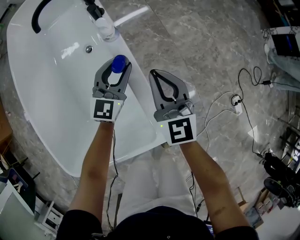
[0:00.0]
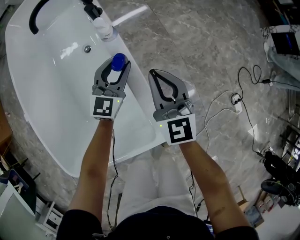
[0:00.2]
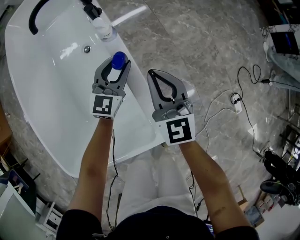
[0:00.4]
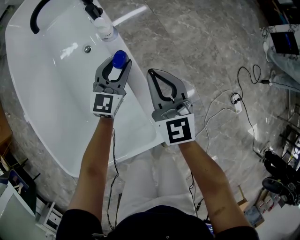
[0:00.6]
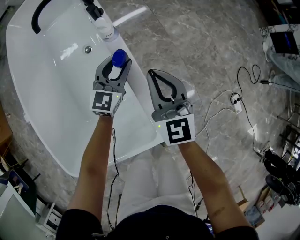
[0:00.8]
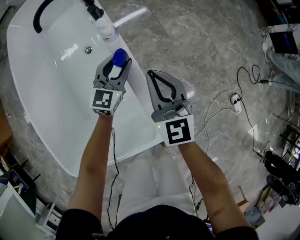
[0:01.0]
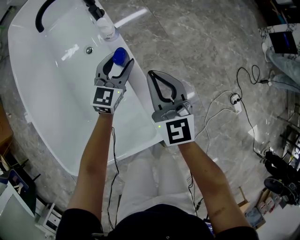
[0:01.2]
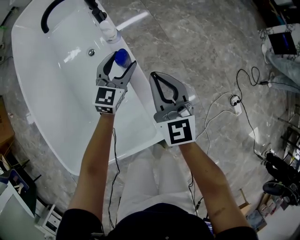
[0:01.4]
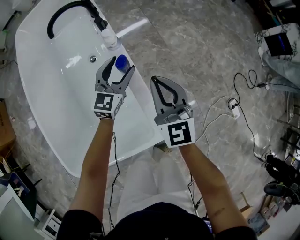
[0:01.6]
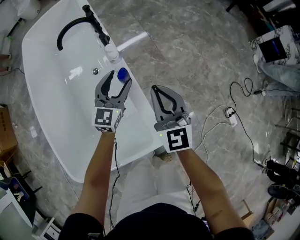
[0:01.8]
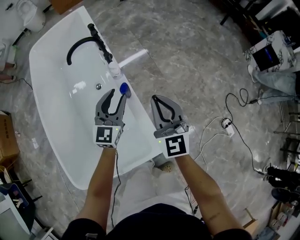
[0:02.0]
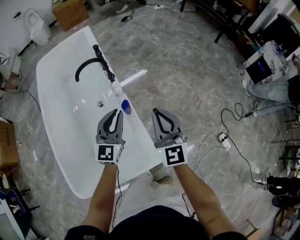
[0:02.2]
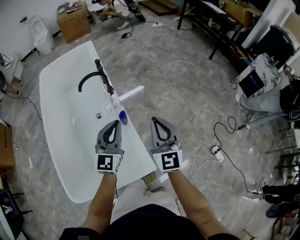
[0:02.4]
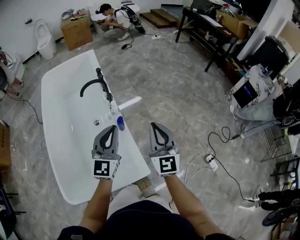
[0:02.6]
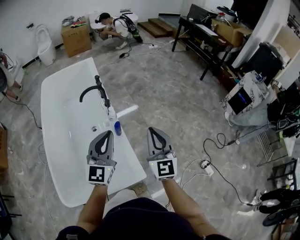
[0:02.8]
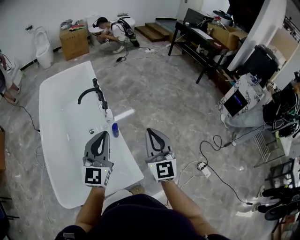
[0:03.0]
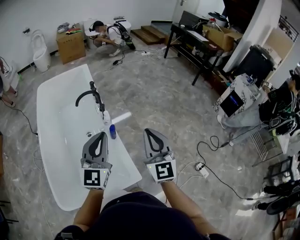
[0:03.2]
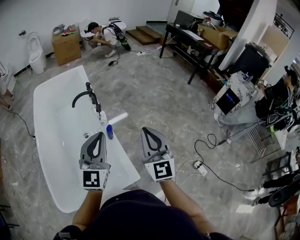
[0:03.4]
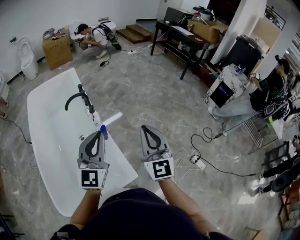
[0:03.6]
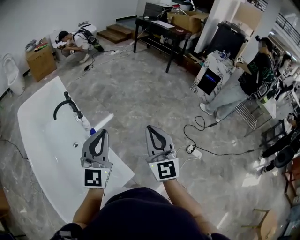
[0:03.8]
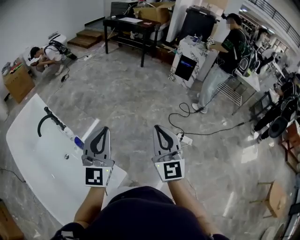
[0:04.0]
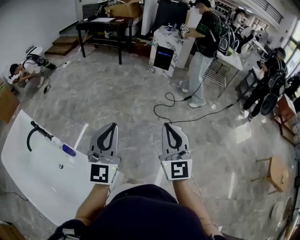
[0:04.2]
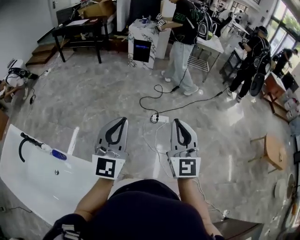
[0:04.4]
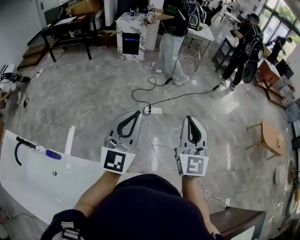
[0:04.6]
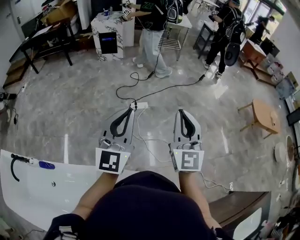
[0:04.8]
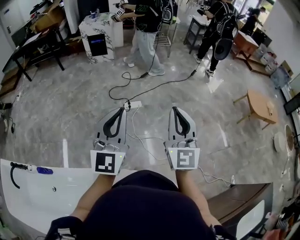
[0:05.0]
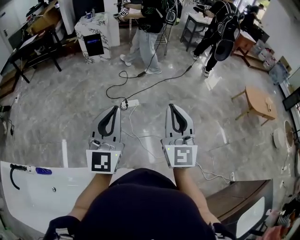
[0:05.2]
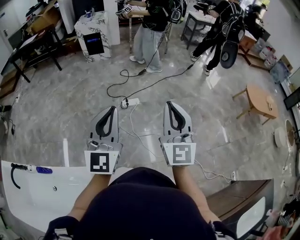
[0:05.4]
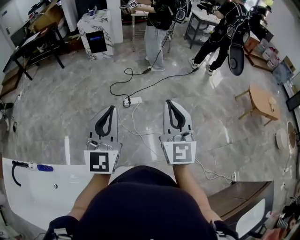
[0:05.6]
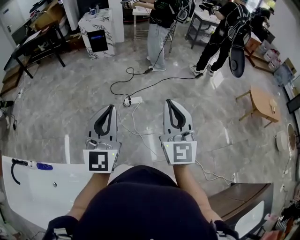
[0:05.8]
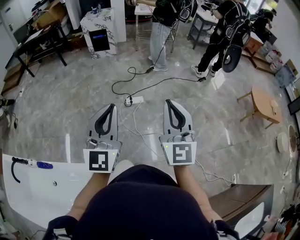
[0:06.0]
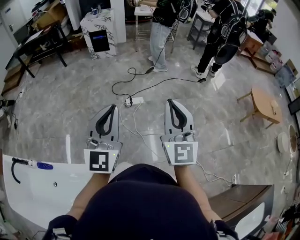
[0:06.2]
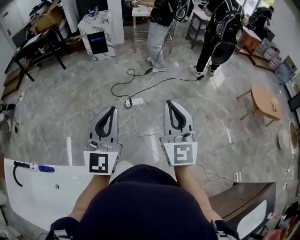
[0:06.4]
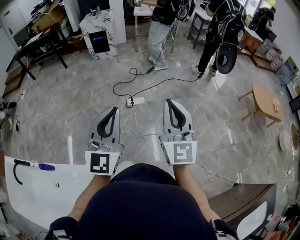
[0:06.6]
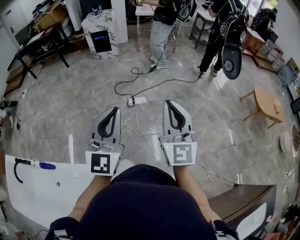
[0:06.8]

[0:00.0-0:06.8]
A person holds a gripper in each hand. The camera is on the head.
0:00.0 to 0:01.4: The left gripper opens.
0:01.4 to 0:02.8: The right gripper heads upward, covering about 30 cm. The left gripper travels upward and backward by some 40 cm, rotates roughly 30 degrees, and closes.
0:02.8 to 0:04.0: The left gripper shifts by roughly 20 cm, and changes its angle by approximately 30 degrees. The right gripper moves approximately 25 cm, and swivels roughly 30 degrees.
0:04.0 to 0:05.4: The pair of grippers is taken some 40 cm. The left gripper turns by roughly 40 degrees, while the right gripper swivels roughly 50 degrees.
0:05.4 to 0:06.8: The grippers make only small movements.

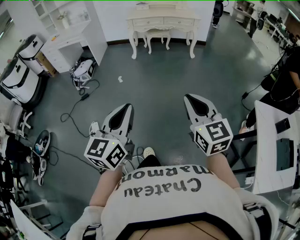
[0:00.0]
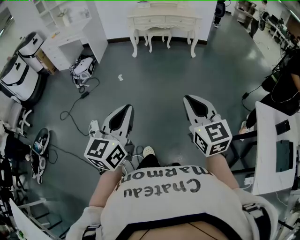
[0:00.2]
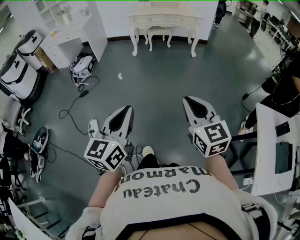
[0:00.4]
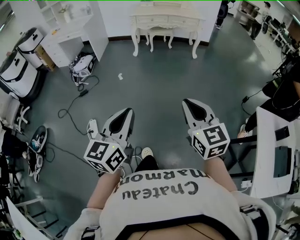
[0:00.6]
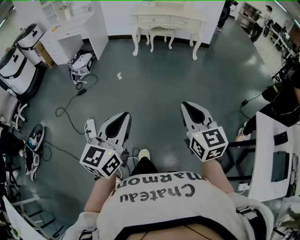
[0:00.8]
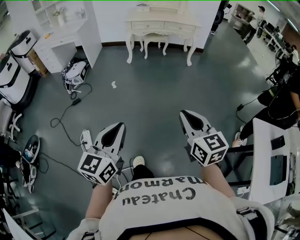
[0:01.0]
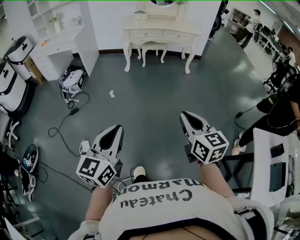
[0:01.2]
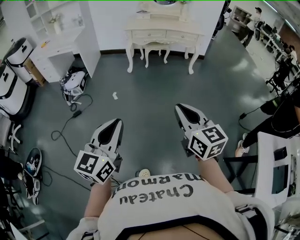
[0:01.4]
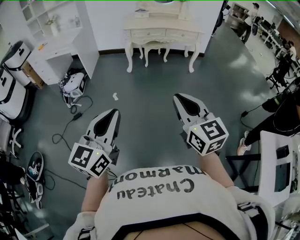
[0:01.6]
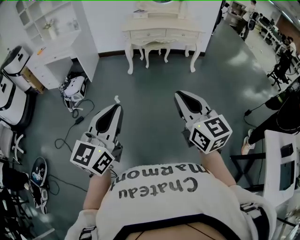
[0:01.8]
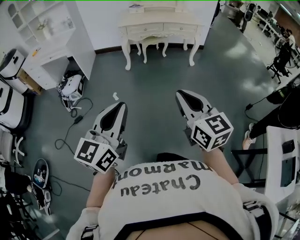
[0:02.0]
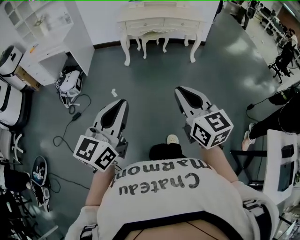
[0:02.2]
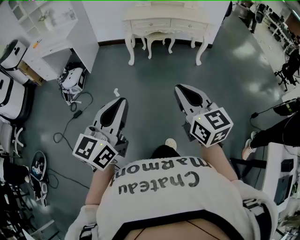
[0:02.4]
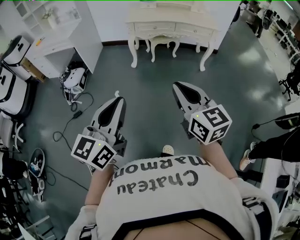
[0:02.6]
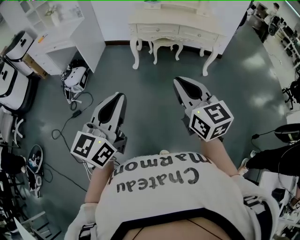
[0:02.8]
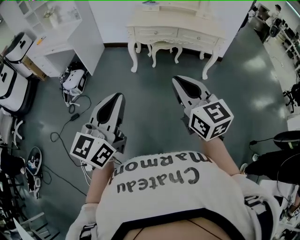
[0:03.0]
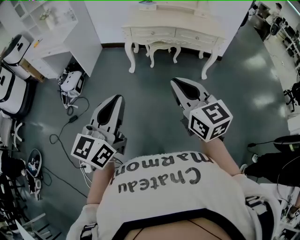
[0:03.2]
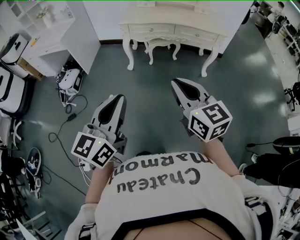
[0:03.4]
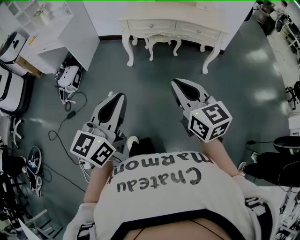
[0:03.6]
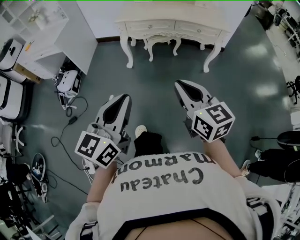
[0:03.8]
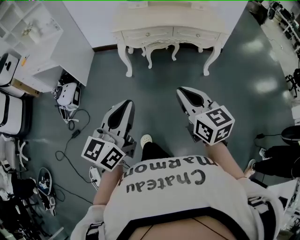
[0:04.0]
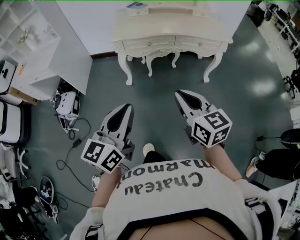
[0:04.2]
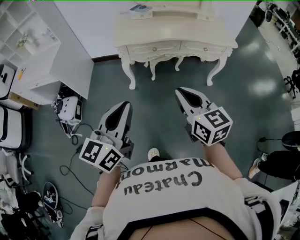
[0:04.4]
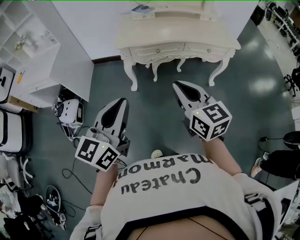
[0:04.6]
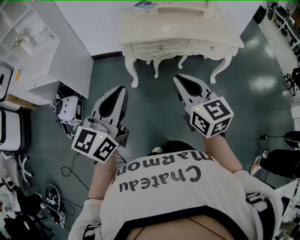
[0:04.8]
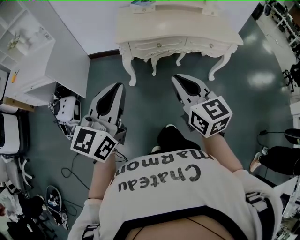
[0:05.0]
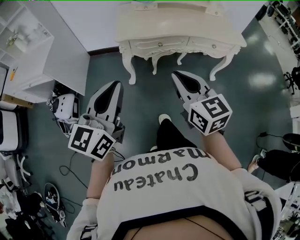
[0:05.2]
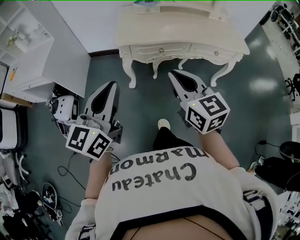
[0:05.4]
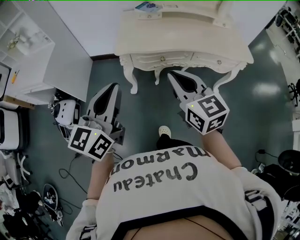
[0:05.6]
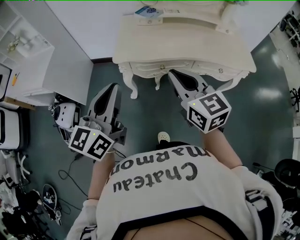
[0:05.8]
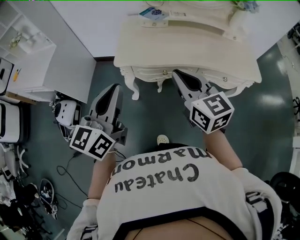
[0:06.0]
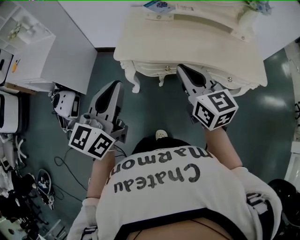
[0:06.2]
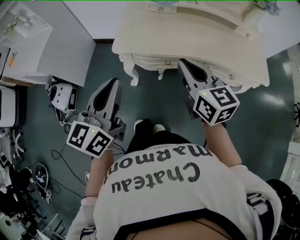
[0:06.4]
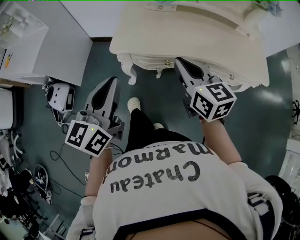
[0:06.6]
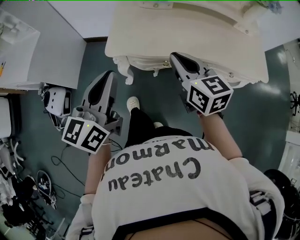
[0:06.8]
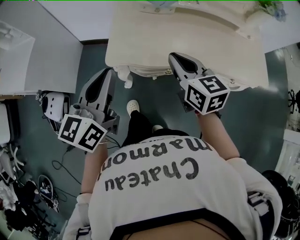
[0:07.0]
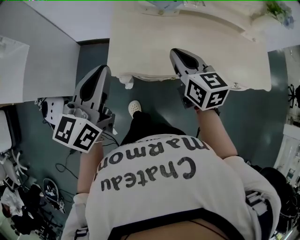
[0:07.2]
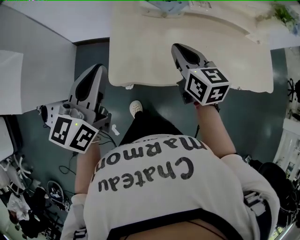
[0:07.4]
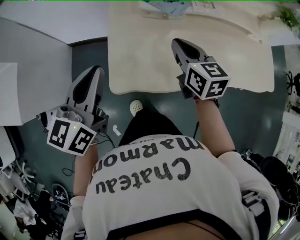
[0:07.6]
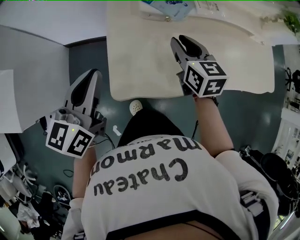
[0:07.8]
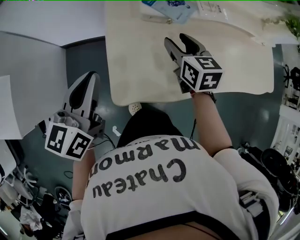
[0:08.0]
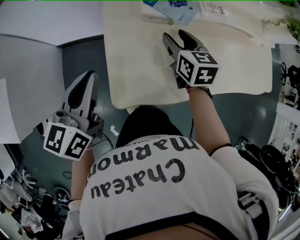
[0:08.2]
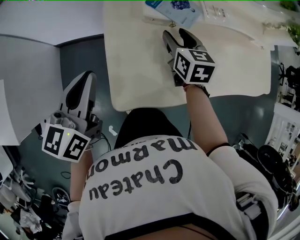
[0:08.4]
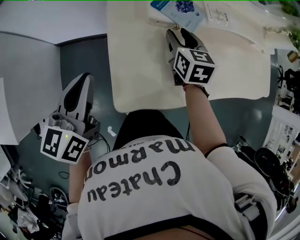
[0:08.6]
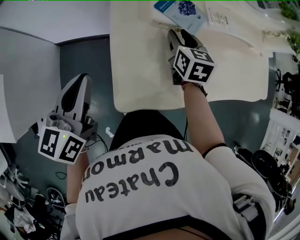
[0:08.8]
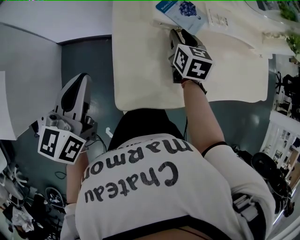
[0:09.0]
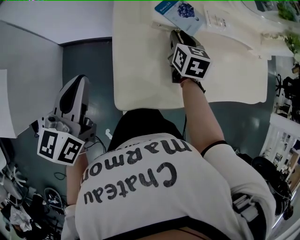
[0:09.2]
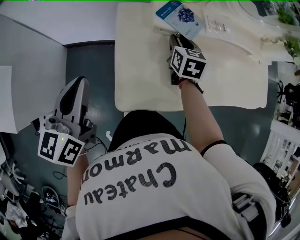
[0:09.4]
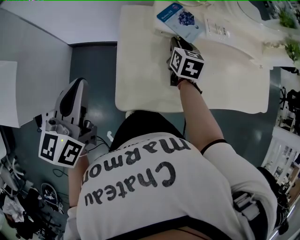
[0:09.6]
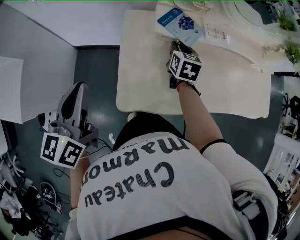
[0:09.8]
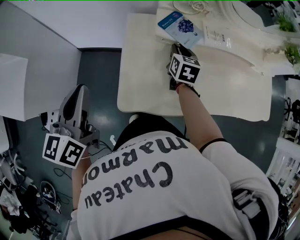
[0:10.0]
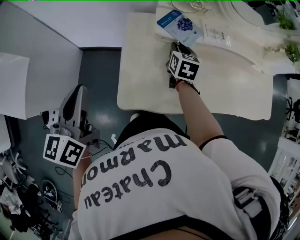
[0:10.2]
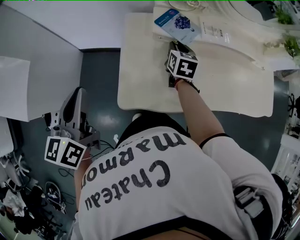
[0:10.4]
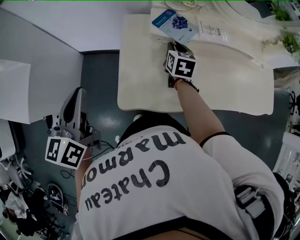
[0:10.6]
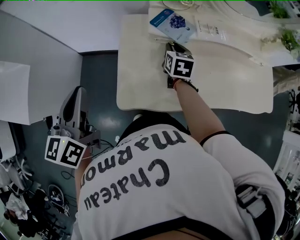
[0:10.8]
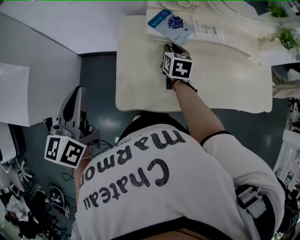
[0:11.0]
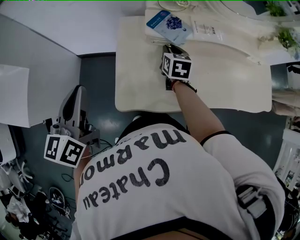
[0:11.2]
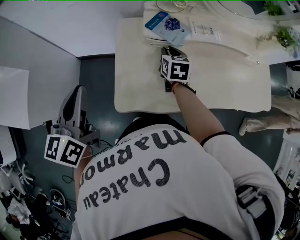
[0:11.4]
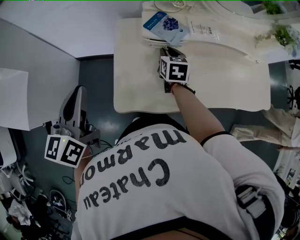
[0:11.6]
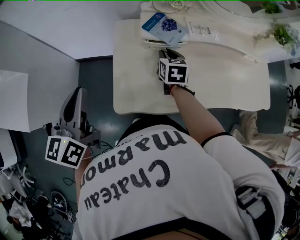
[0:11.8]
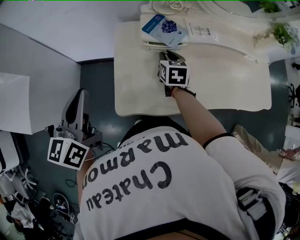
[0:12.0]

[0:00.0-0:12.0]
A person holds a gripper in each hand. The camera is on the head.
0:00.0 to 0:01.6: The two grippers go roughly 30 cm forward and to the left.
0:01.6 to 0:03.0: The grippers both shift forward by about 35 cm.
0:03.0 to 0:04.4: Both grippers travel together forward, some 35 cm.
0:04.4 to 0:06.0: Both grippers travel together forward, roughly 35 cm.
0:06.0 to 0:07.6: The right gripper travels forward and downward by approximately 35 cm, and changes its angle by about 20 degrees. Meanwhile the left gripper travels forward by roughly 35 cm.
0:07.6 to 0:09.0: The left gripper heads to the left, covering roughly 10 cm. Meanwhile the right gripper heads forward and downward, covering roughly 15 cm, turns by roughly 20 degrees, and opens up.
0:09.0 to 0:10.4: The left gripper goes about 10 cm upward and backward.
0:10.4 to 0:12.0: There are only small adjustments of the grippers.

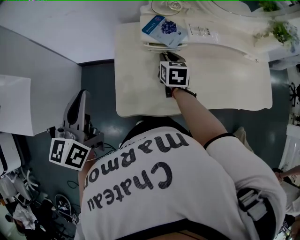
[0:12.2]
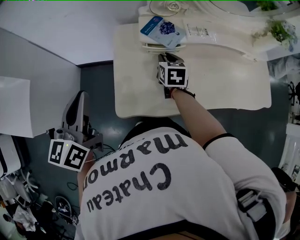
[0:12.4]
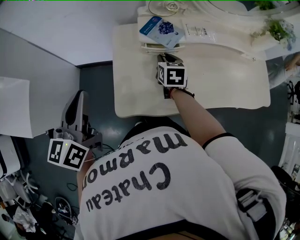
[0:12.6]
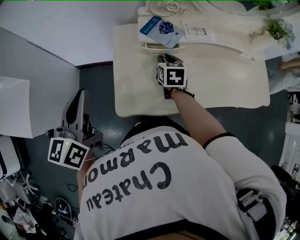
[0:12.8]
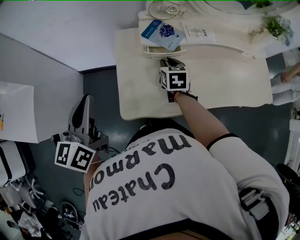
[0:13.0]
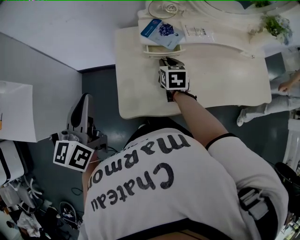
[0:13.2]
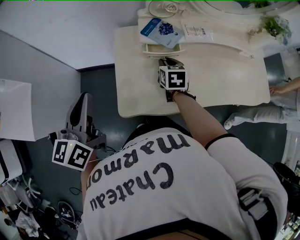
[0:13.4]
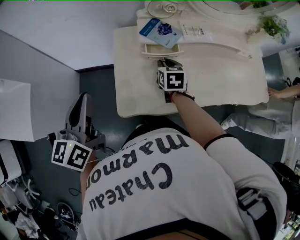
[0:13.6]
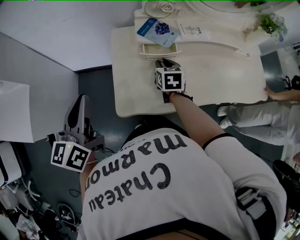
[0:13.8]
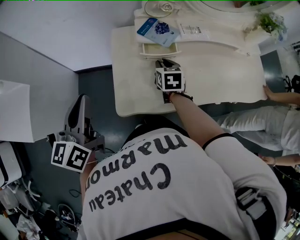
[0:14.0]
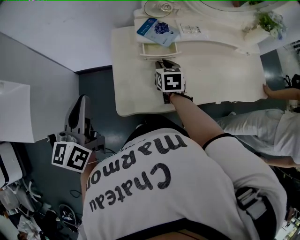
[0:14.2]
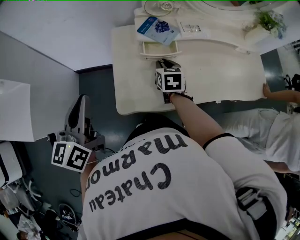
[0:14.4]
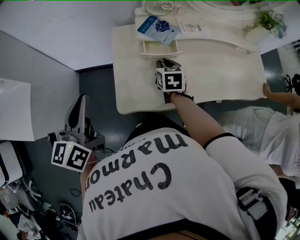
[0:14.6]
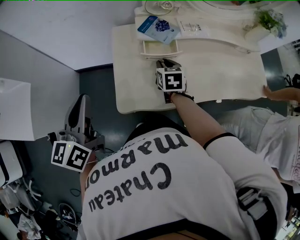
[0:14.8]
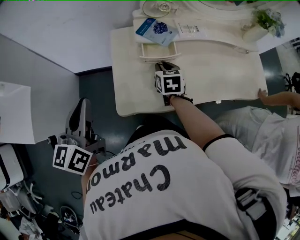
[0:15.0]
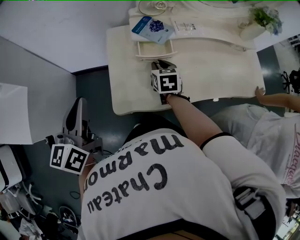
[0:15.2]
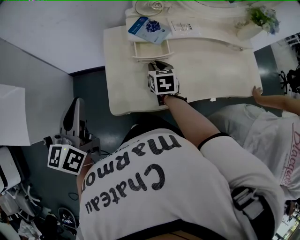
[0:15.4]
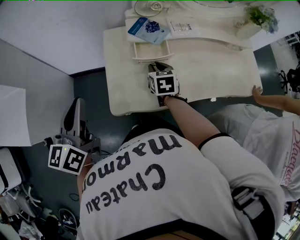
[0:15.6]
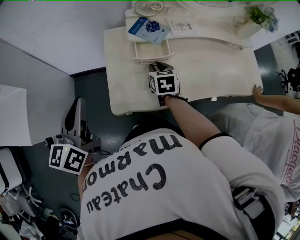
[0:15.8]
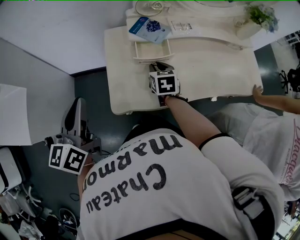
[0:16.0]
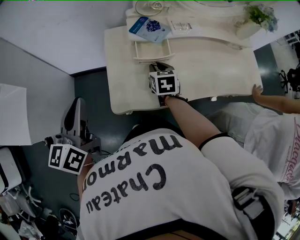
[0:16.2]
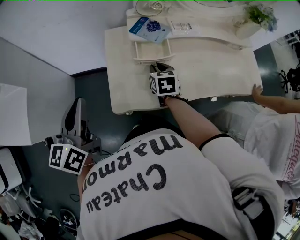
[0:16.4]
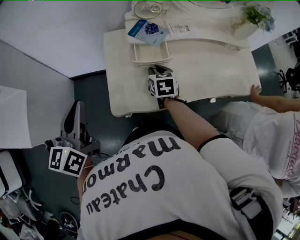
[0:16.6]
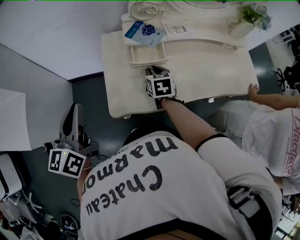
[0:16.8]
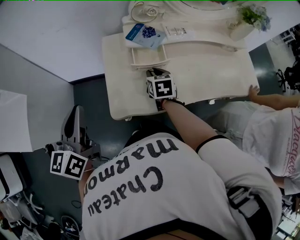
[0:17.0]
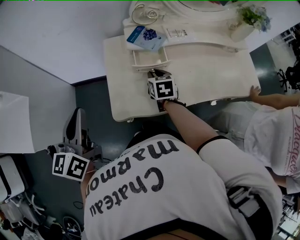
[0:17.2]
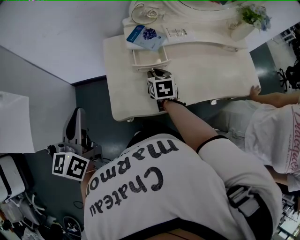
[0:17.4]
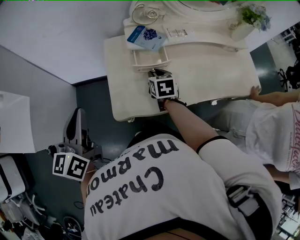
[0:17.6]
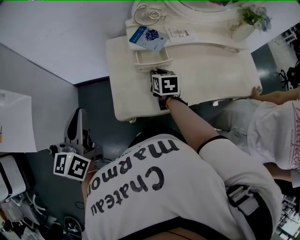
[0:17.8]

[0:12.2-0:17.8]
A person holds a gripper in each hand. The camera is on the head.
0:12.2 to 0:15.0: The grippers make only small movements.
0:15.0 to 0:17.8: The grippers move only a little.
